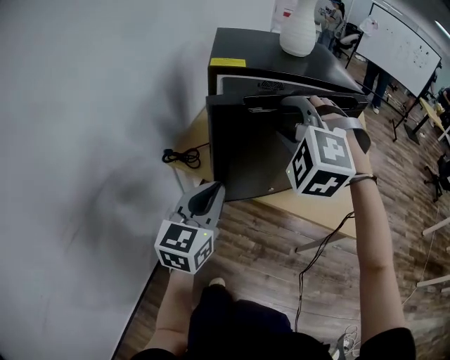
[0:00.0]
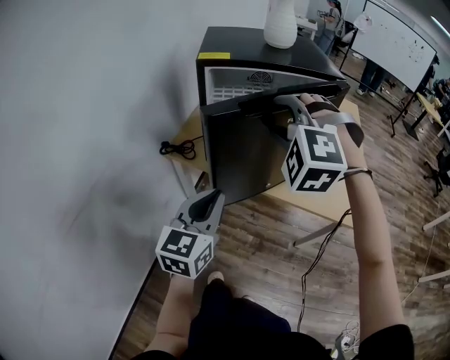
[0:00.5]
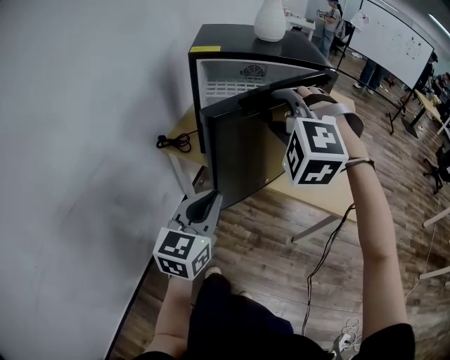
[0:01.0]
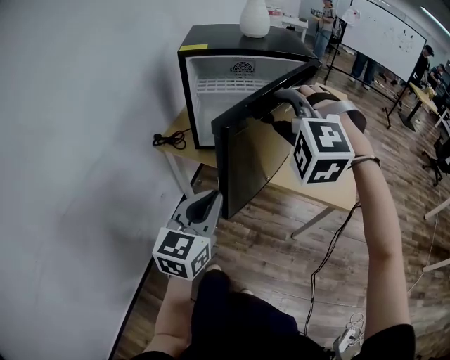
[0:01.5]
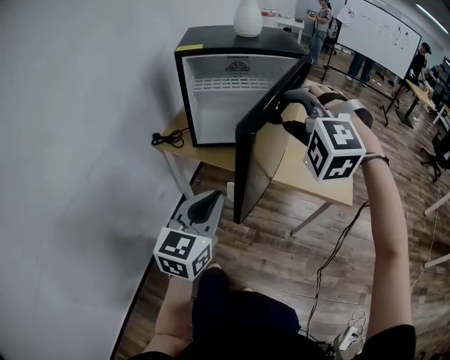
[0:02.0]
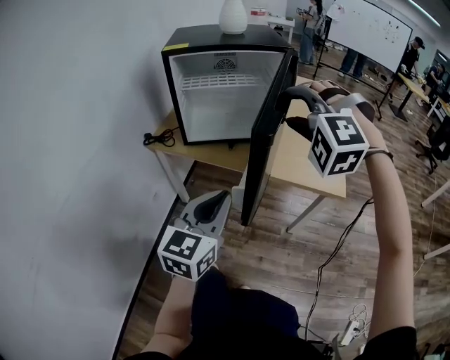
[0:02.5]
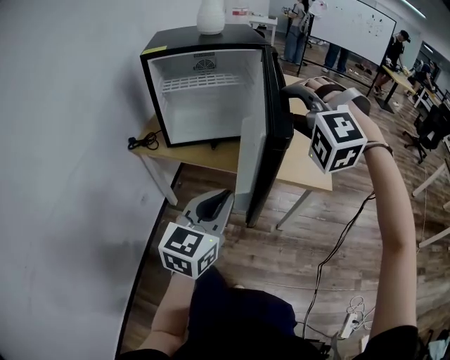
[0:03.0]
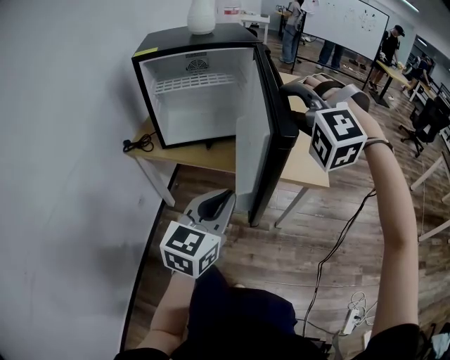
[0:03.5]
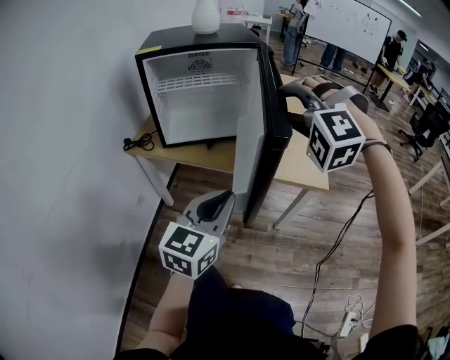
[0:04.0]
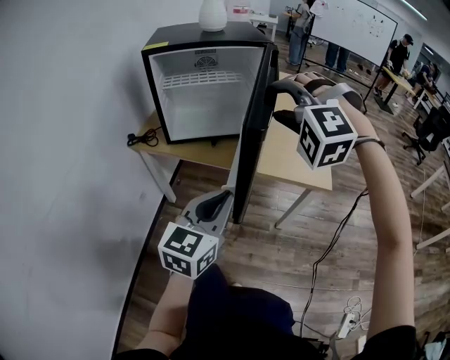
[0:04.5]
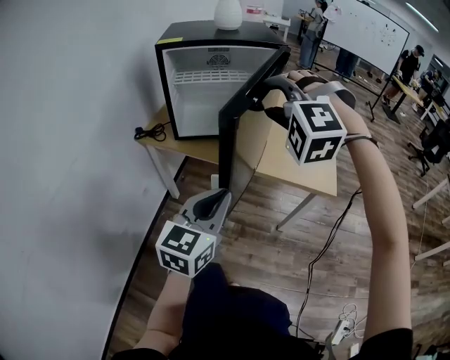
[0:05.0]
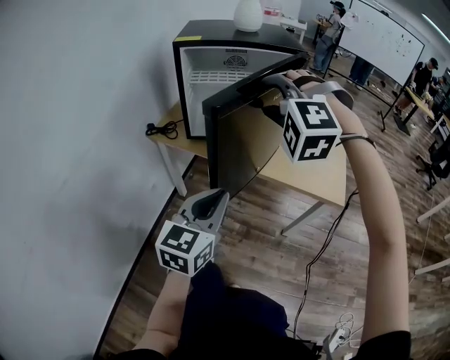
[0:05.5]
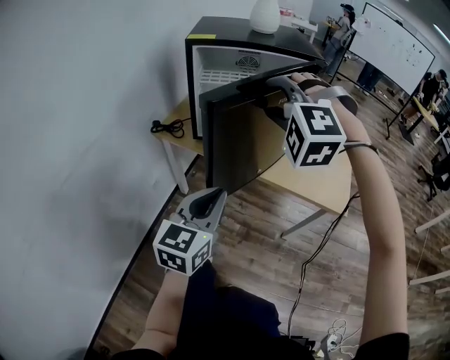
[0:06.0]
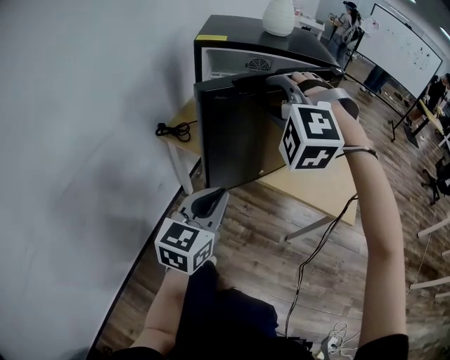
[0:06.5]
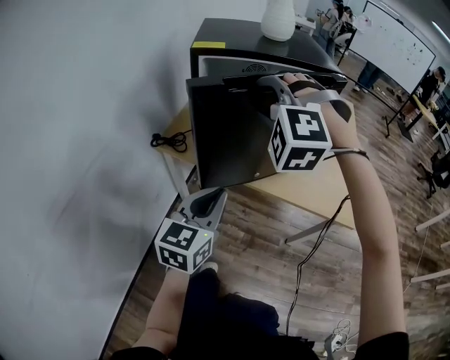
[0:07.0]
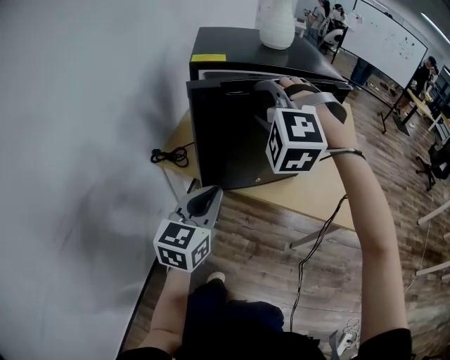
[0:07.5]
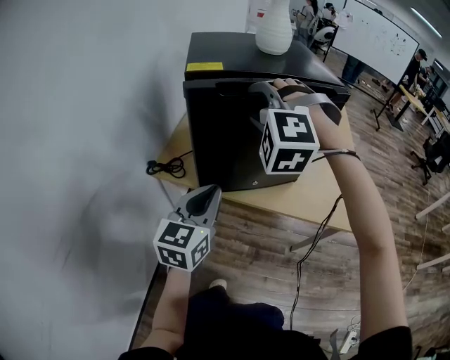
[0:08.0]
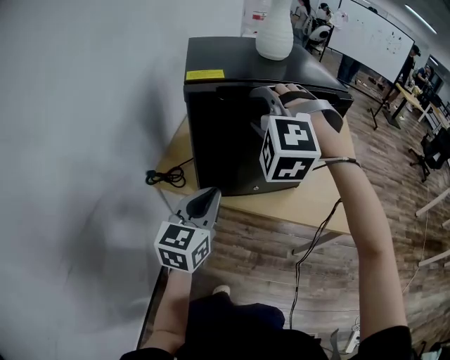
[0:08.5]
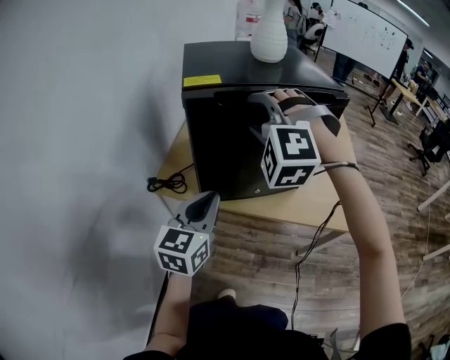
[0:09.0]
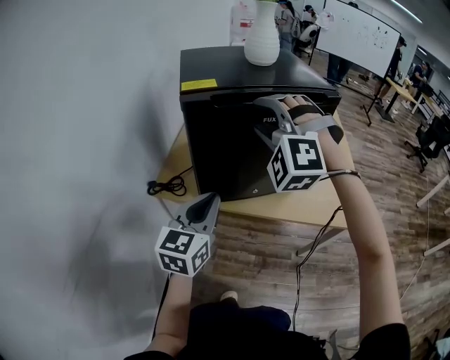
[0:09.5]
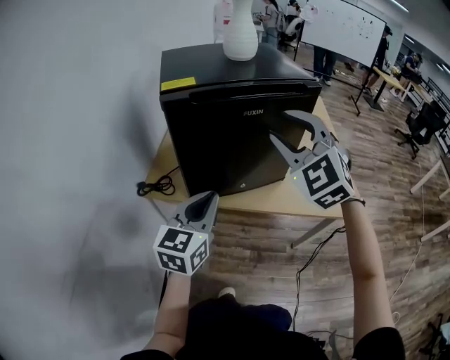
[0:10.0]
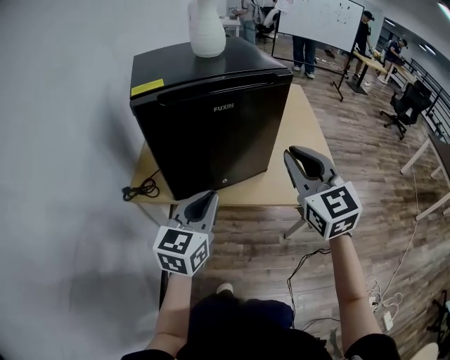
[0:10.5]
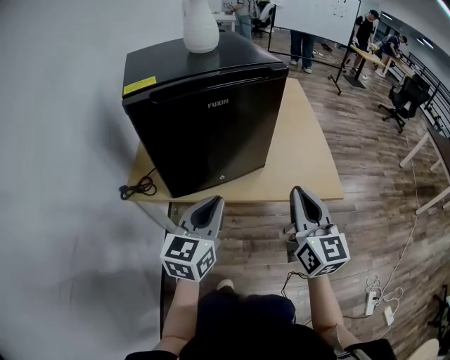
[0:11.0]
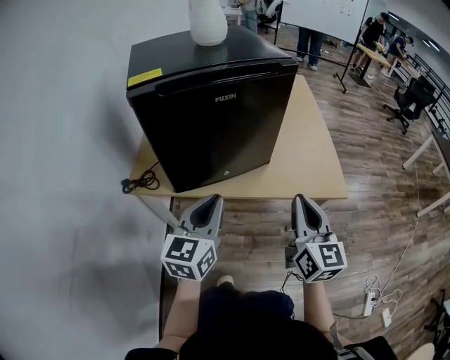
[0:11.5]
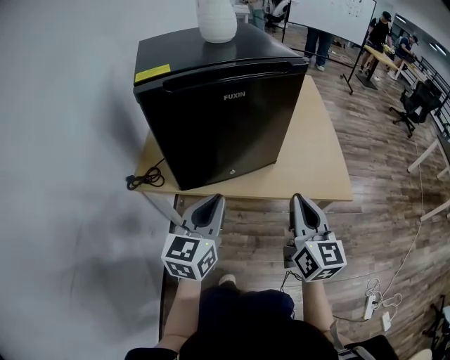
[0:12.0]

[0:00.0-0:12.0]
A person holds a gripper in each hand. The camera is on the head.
0:00.0 to 0:02.0: The left gripper goes some 20 cm backward and to the right. Meanwhile the right gripper is displaced to the right and backward by about 20 cm.
0:02.0 to 0:04.0: The grippers both shift to the right by about 10 cm.
0:04.0 to 0:06.0: The grippers both shift to the left by roughly 15 cm.
0:06.0 to 0:08.0: The grippers both shift forward and to the left by roughly 20 cm.
0:08.0 to 0:10.0: The right gripper moves to the right, about 10 cm, and turns by approximately 40 degrees.
0:10.0 to 0:12.0: The left gripper changes place by some 5 cm. The right gripper heads downward, to the right and backward, covering some 20 cm, twists some 60 degrees clockwise, seen from behind, and closes up.

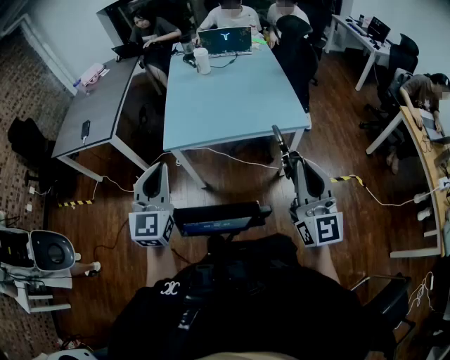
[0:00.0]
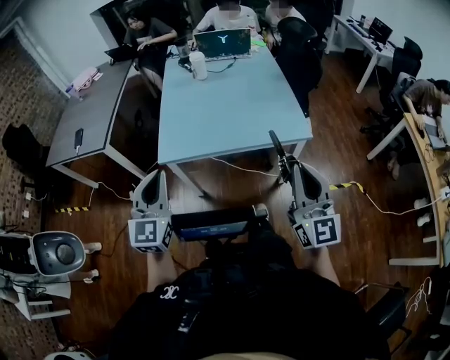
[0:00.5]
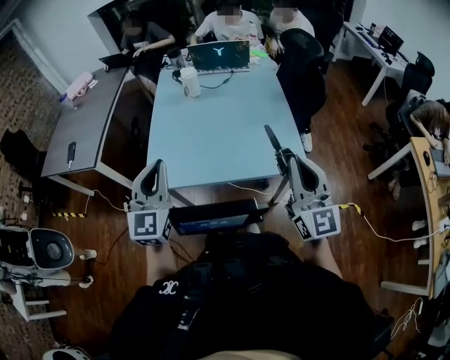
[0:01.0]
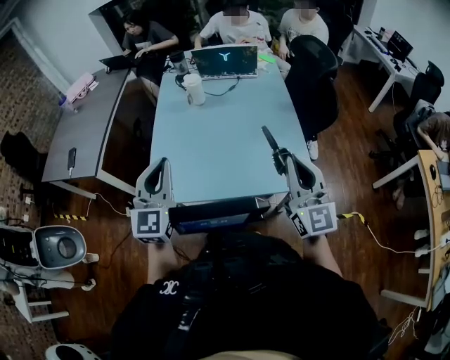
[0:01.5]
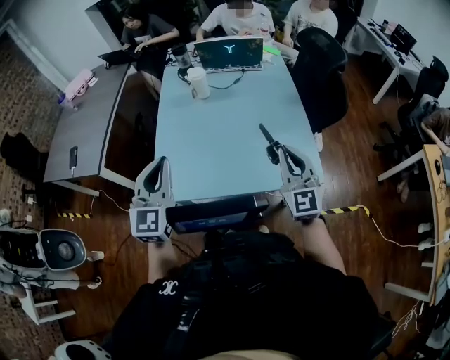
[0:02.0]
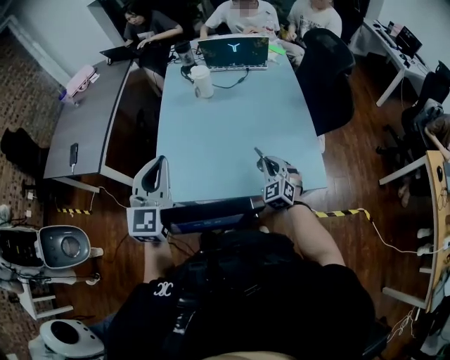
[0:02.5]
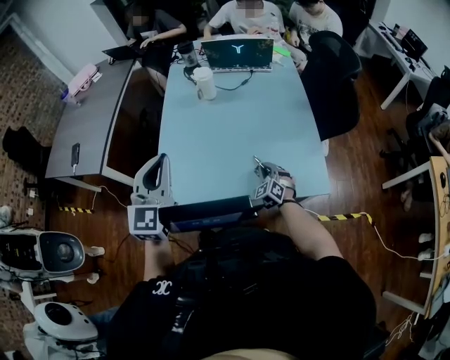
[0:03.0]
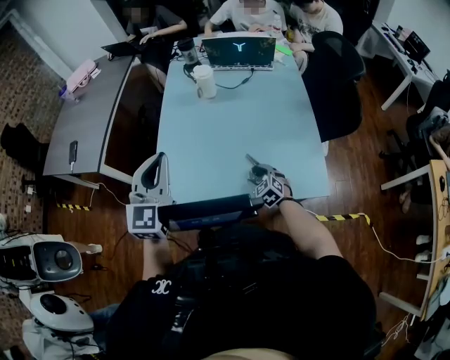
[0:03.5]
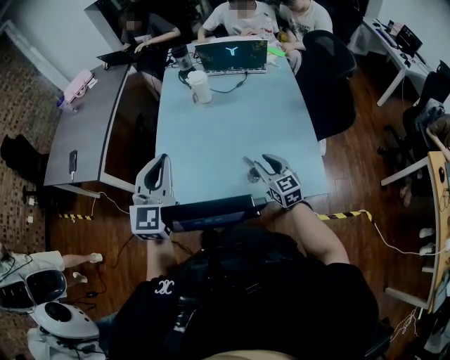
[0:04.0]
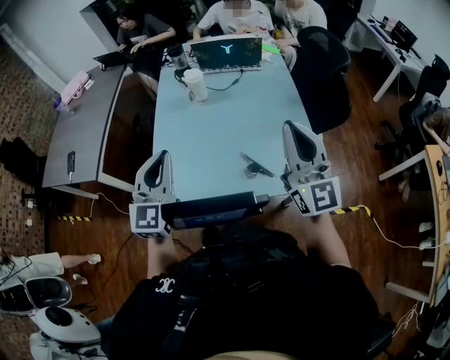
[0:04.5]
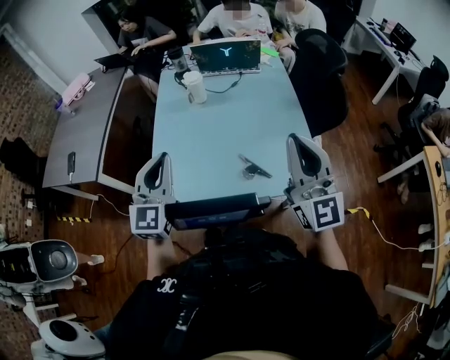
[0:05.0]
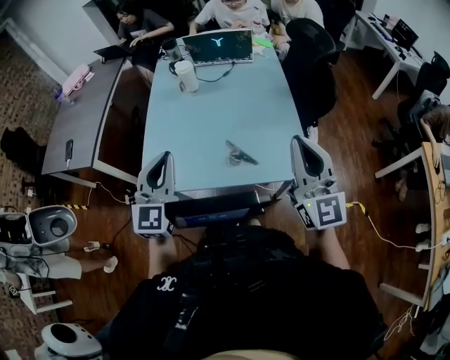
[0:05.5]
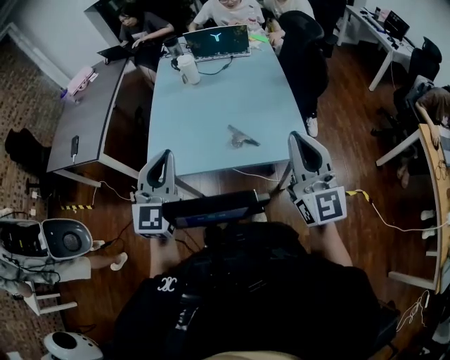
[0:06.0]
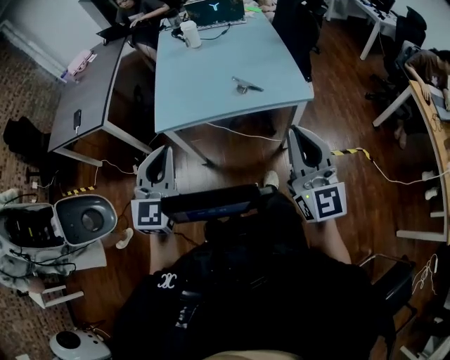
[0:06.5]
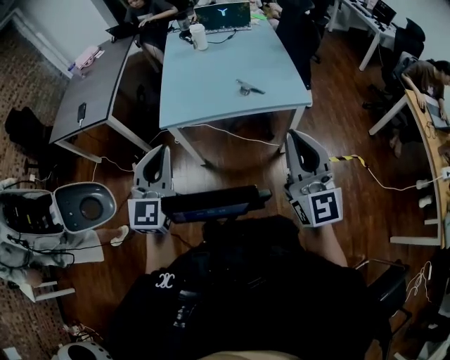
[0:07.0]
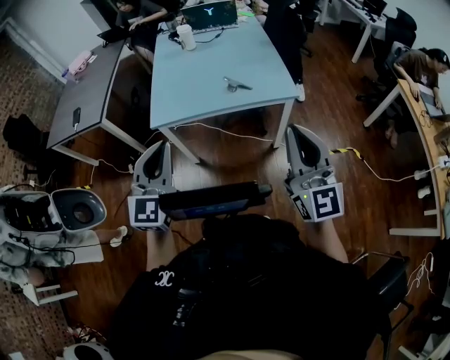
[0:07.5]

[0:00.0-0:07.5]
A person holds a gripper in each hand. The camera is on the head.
0:00.0 to 0:02.0: Both grippers move forward, approximately 35 cm. The right gripper changes its angle by about 20 degrees.
0:02.0 to 0:04.0: The right gripper heads downward and forward, covering some 20 cm, turns by some 30 degrees, and opens up. Meanwhile the left gripper heads forward, covering some 5 cm.
0:04.0 to 0:05.5: The left gripper travels to the right and backward by some 10 cm, while the right gripper shifts about 35 cm upward, backward and to the right, tips its fingers upward by roughly 30 degrees, and closes.
0:05.5 to 0:07.5: The grippers both shift backward by some 35 cm.

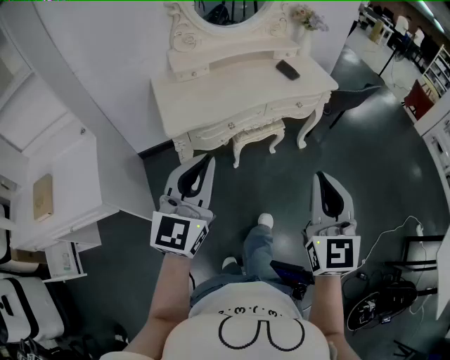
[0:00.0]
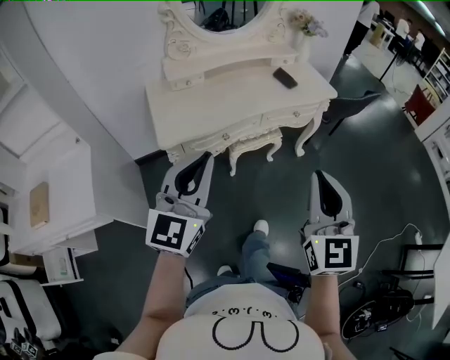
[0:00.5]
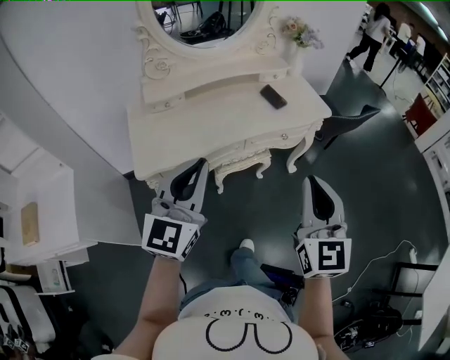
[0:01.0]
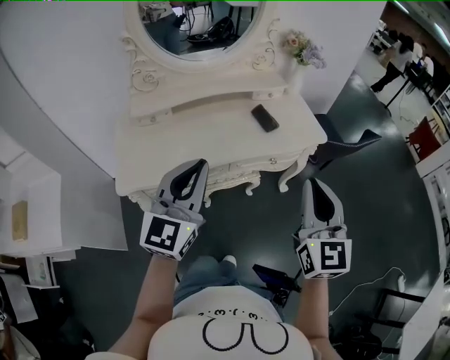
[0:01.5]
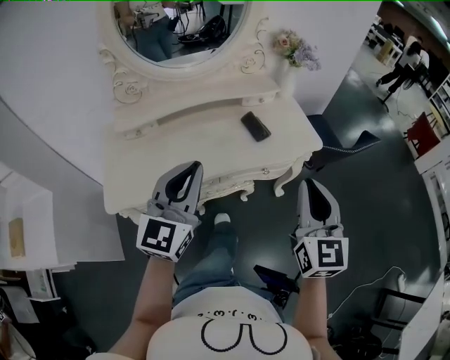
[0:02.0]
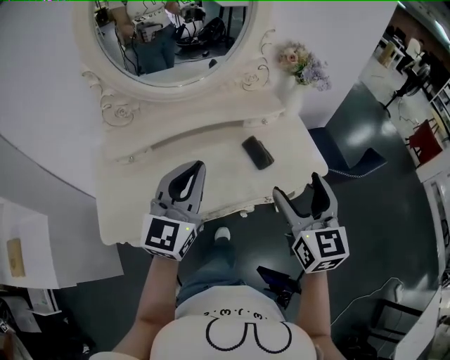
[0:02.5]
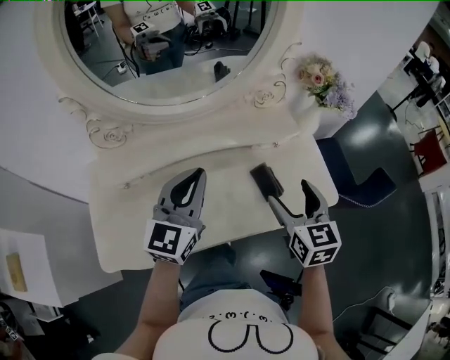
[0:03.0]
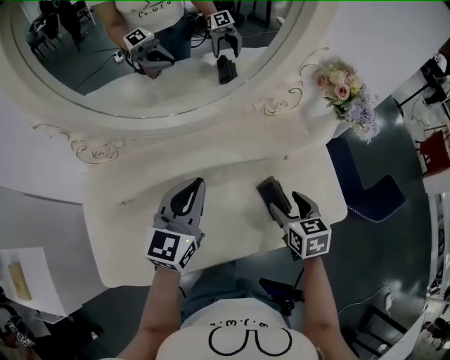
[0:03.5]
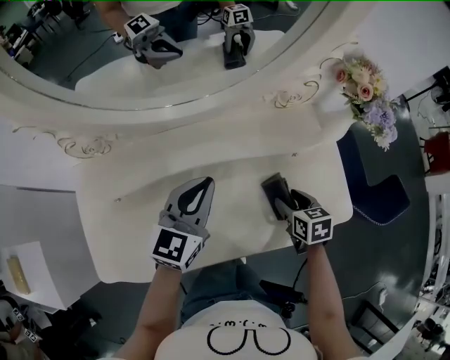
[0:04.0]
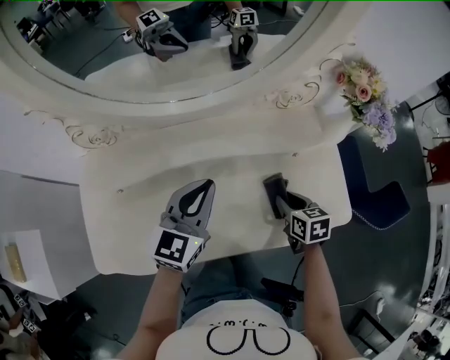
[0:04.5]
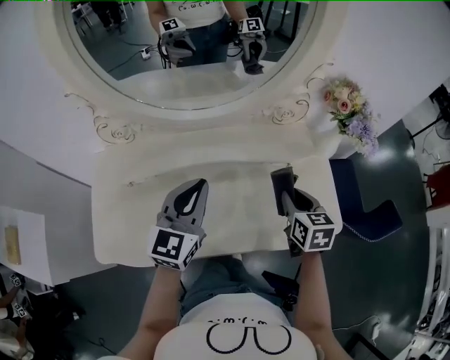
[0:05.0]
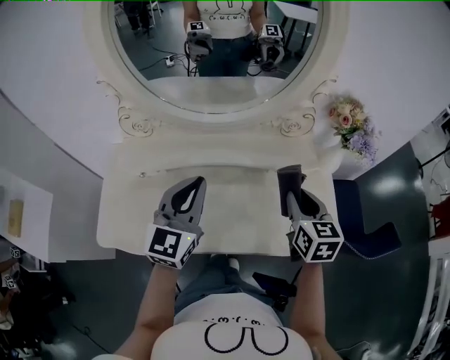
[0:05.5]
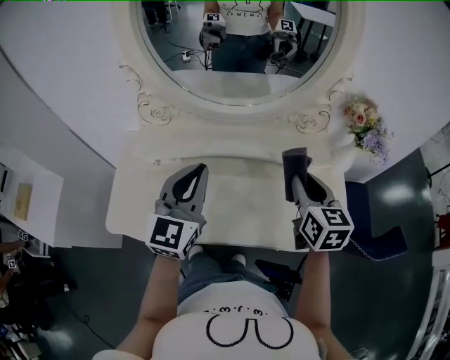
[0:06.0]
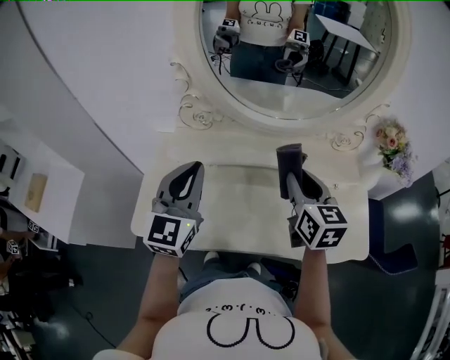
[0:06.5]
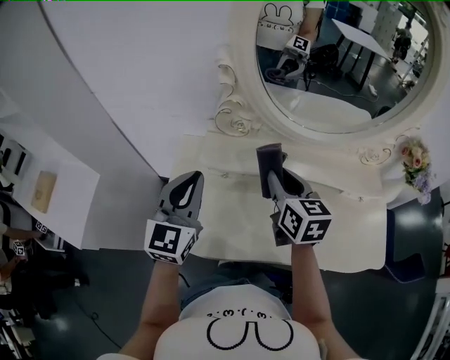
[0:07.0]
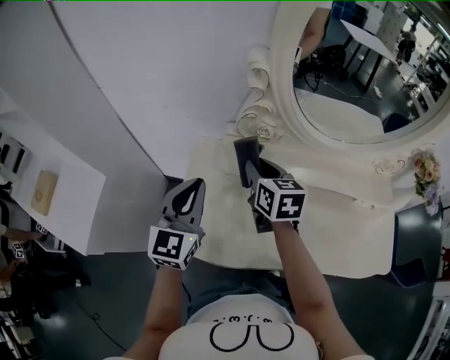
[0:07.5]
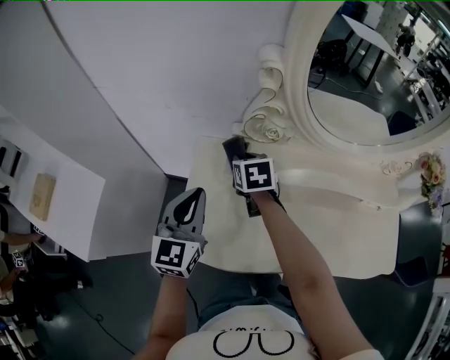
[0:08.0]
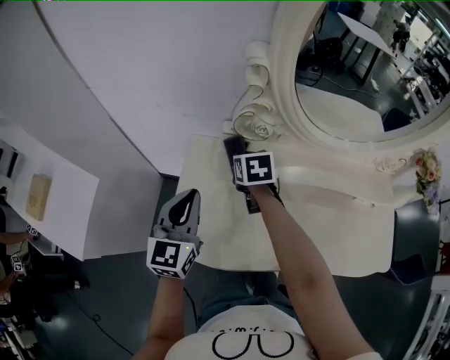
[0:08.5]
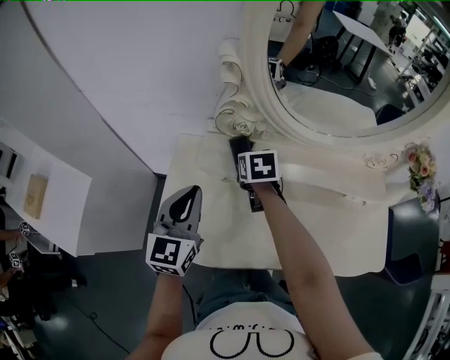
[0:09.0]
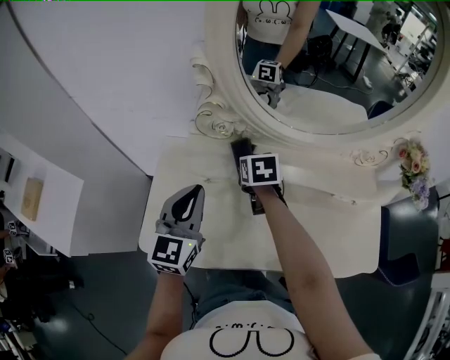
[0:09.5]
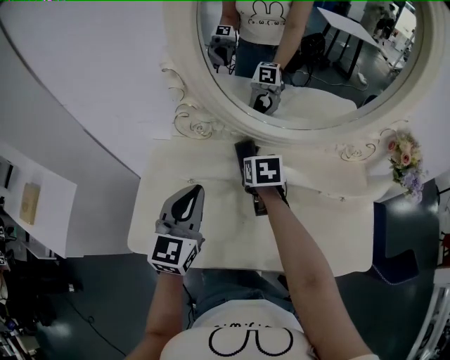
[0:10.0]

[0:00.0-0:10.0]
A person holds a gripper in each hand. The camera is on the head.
0:00.0 to 0:02.0: The two grippers travel together, forward and to the right, some 40 cm.
0:02.0 to 0:04.0: The two grippers go roughly 40 cm forward and downward. The right gripper points its fingers roughly 50 degrees further downward, and opens its fingers.
0:04.0 to 0:06.0: The left gripper goes approximately 20 cm upward, backward and to the left, and turns by some 30 degrees. The right gripper moves upward, about 25 cm, and angles its fingers upward, by some 30 degrees.
0:06.0 to 0:08.0: The right gripper is displaced to the left and forward by about 50 cm, and rotates some 30 degrees; the left gripper travels to the left by roughly 35 cm.
0:08.0 to 0:10.0: The grippers both shift to the right by approximately 20 cm.
